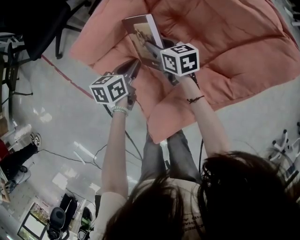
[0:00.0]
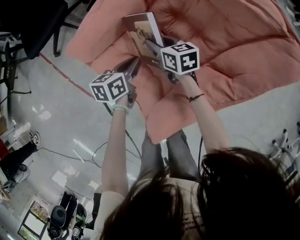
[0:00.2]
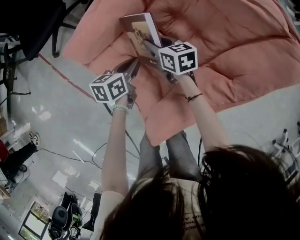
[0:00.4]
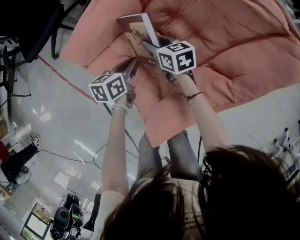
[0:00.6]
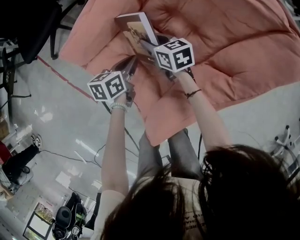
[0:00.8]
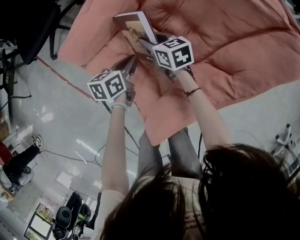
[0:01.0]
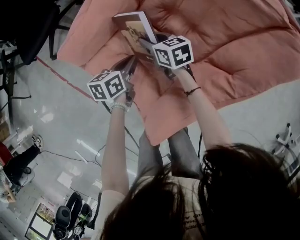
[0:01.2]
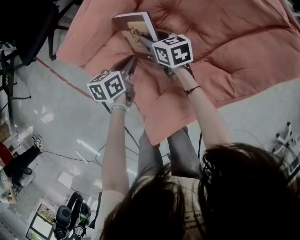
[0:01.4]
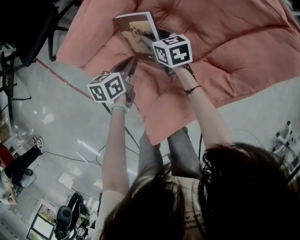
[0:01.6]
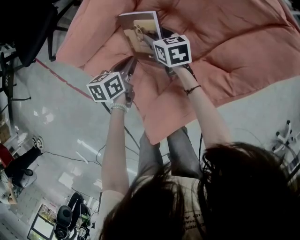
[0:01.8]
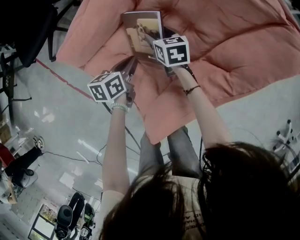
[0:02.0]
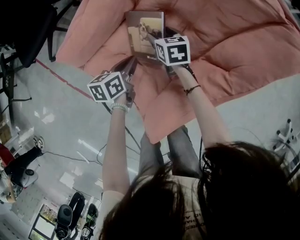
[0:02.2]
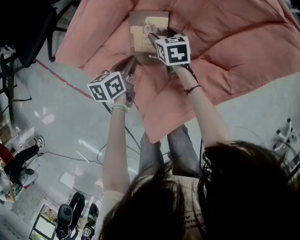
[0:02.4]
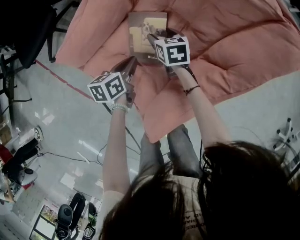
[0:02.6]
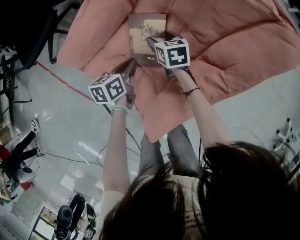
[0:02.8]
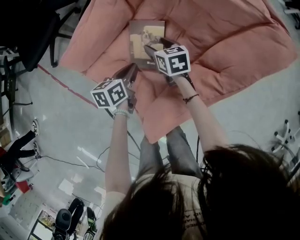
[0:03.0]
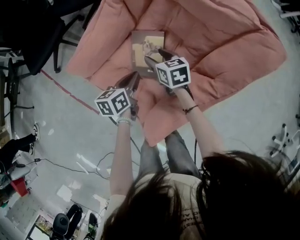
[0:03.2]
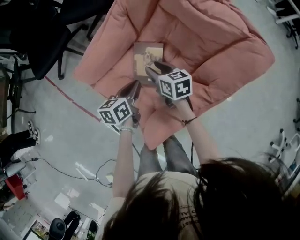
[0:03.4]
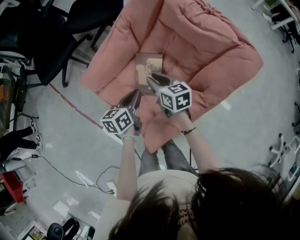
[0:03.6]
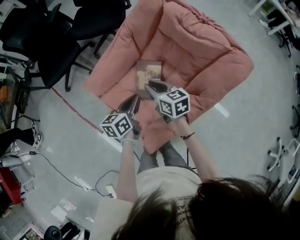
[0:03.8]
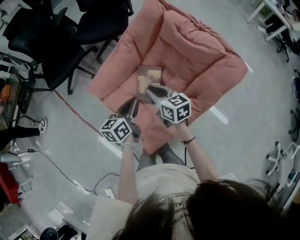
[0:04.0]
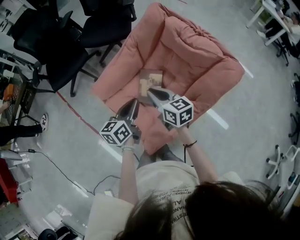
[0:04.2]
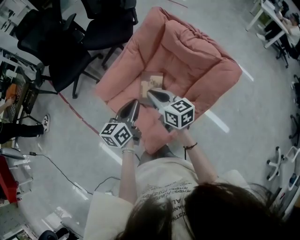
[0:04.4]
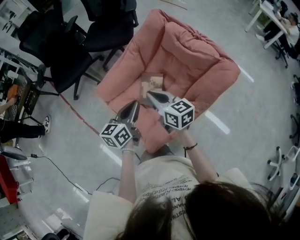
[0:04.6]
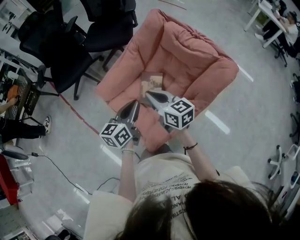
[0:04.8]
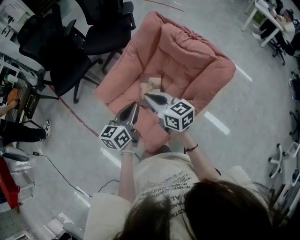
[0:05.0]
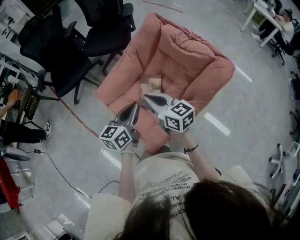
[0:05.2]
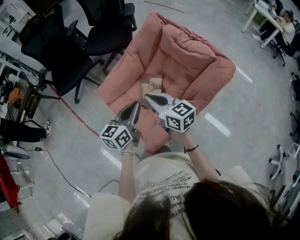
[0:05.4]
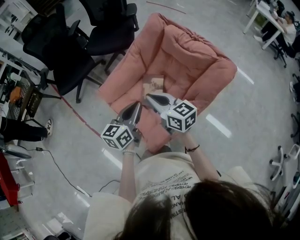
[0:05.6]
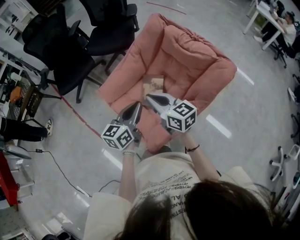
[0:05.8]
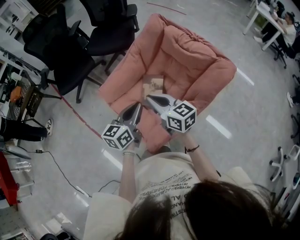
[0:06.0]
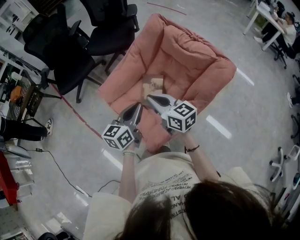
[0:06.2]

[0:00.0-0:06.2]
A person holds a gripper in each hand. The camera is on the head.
0:00.0 to 0:01.6: The right gripper ends up roughly 5 cm from where it was.
0:01.6 to 0:03.2: The grippers both shift upward by about 5 cm.
0:03.2 to 0:04.6: The right gripper is displaced upward and backward by roughly 35 cm, turns by roughly 30 degrees, and closes up, while the left gripper travels upward by some 30 cm, and changes its angle by approximately 30 degrees.
0:04.6 to 0:06.2: The right gripper changes place by approximately 5 cm.

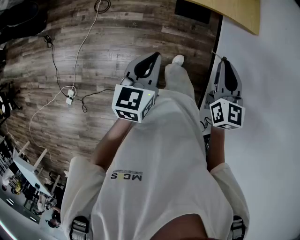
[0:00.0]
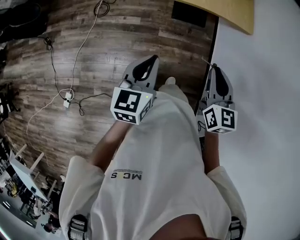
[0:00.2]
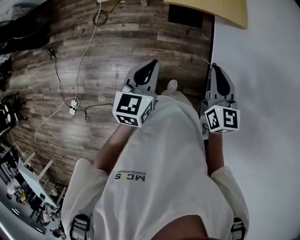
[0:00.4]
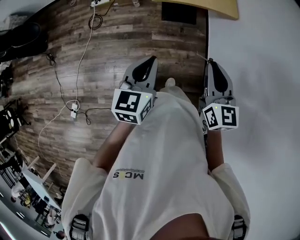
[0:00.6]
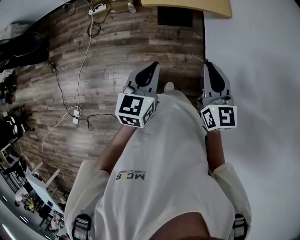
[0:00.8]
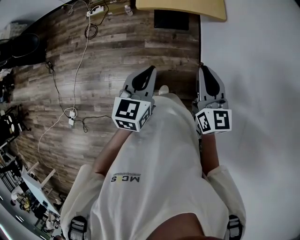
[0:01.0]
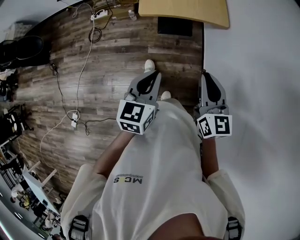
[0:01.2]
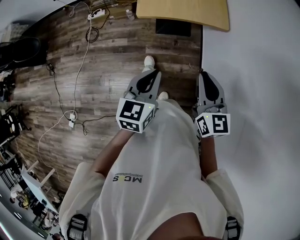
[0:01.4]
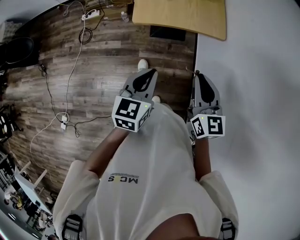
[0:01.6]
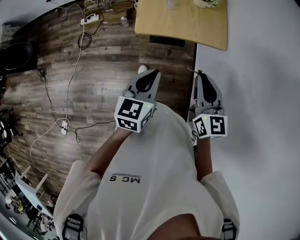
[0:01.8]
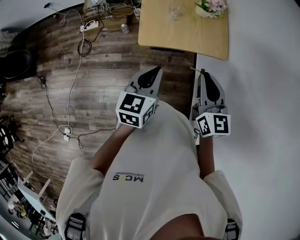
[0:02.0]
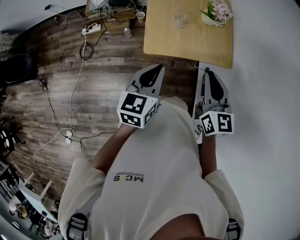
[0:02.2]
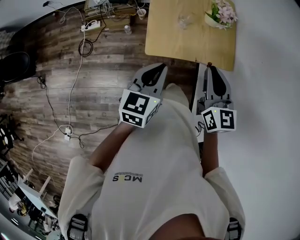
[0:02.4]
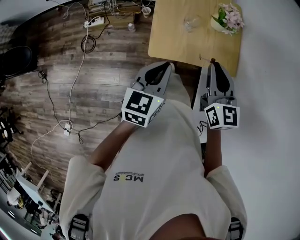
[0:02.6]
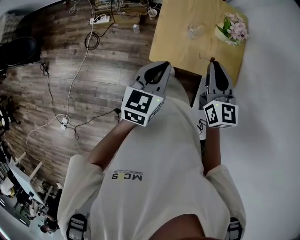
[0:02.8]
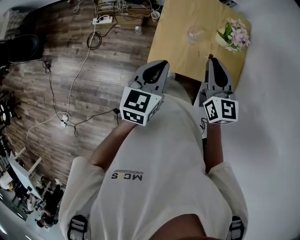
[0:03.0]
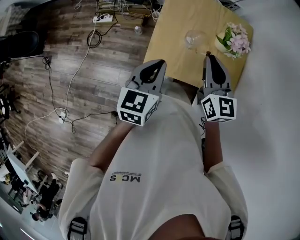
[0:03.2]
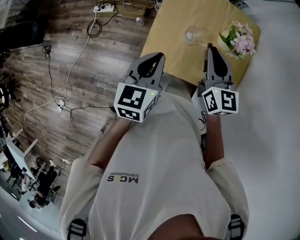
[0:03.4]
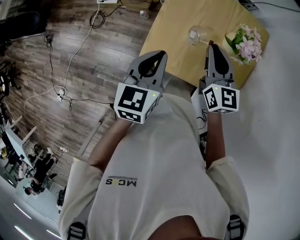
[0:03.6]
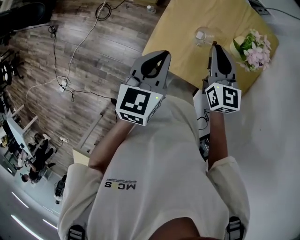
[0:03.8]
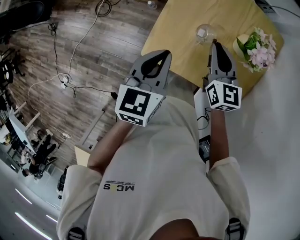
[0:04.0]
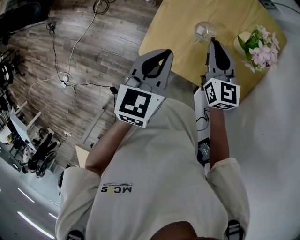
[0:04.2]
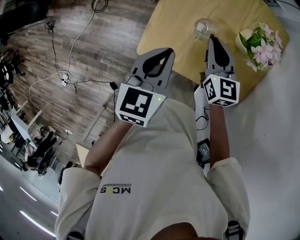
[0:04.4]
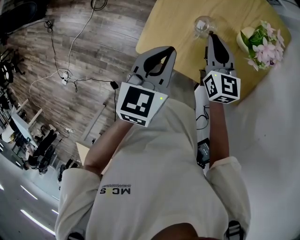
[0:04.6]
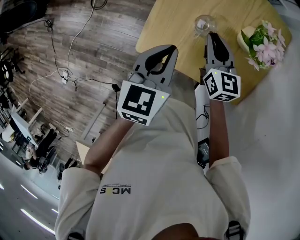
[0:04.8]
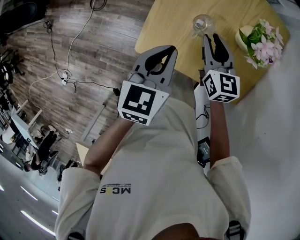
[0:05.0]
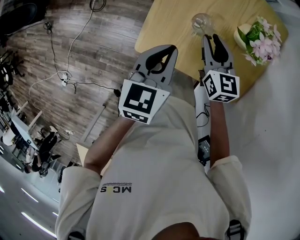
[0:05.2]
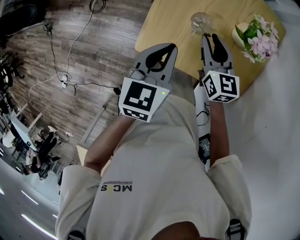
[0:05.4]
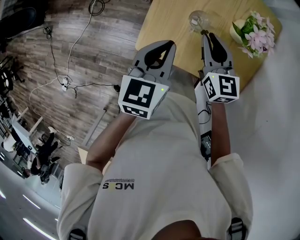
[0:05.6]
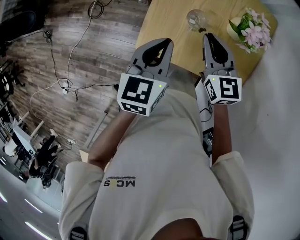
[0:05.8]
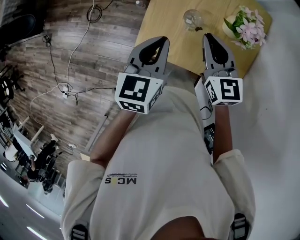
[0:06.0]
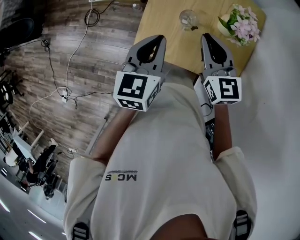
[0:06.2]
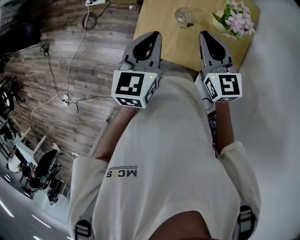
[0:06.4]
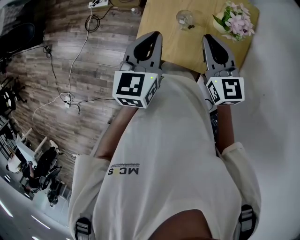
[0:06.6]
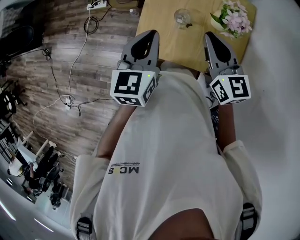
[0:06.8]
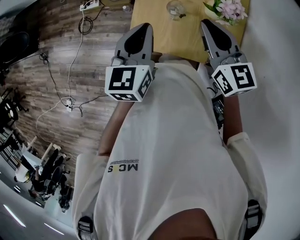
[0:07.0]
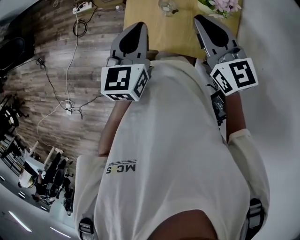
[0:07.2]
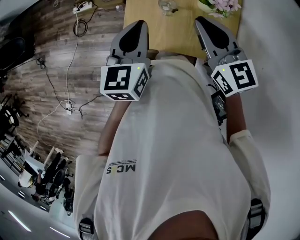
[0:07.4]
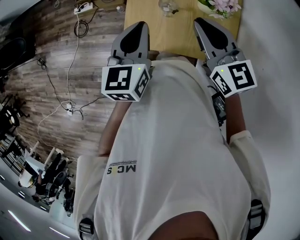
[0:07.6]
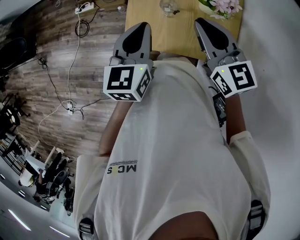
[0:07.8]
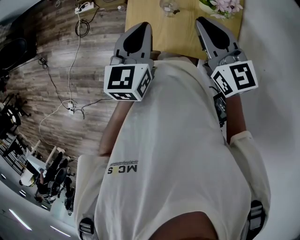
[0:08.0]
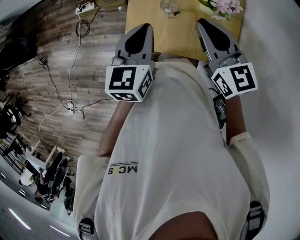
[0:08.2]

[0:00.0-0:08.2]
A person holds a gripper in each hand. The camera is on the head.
0:00.0 to 0:01.6: The left gripper is displaced to the right and forward by some 25 cm, while the right gripper heads to the right, covering some 15 cm.
0:01.6 to 0:03.2: Both grippers move forward, roughly 40 cm.
0:03.2 to 0:05.0: The right gripper moves downward, some 20 cm; the left gripper travels downward and to the right by roughly 10 cm.
0:05.0 to 0:06.6: The left gripper is displaced upward by roughly 10 cm, while the right gripper travels upward by about 15 cm.
0:06.6 to 0:08.2: There are only small adjustments of the grippers.

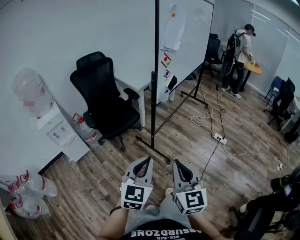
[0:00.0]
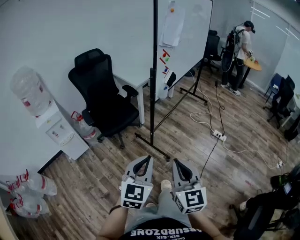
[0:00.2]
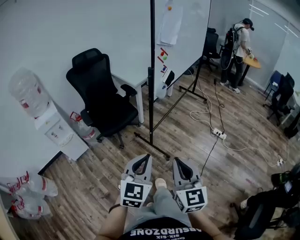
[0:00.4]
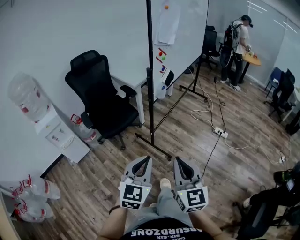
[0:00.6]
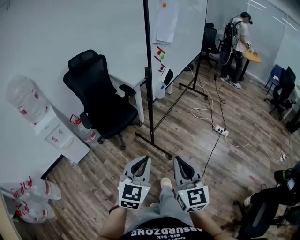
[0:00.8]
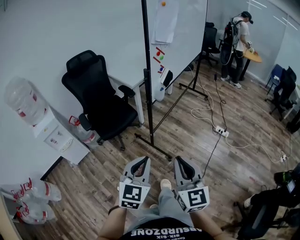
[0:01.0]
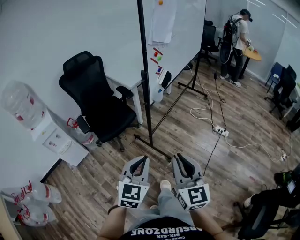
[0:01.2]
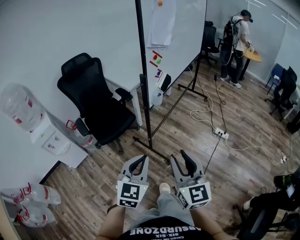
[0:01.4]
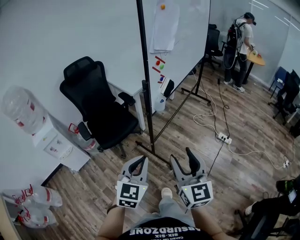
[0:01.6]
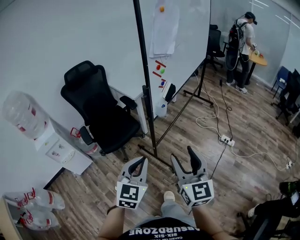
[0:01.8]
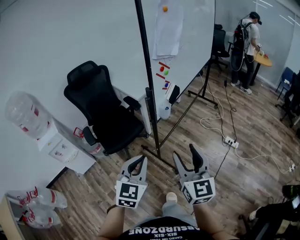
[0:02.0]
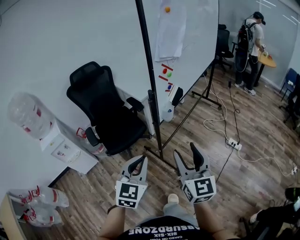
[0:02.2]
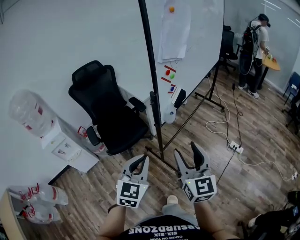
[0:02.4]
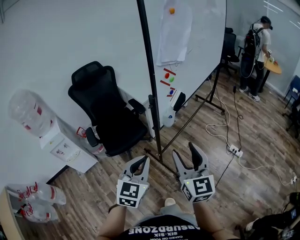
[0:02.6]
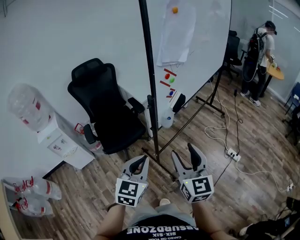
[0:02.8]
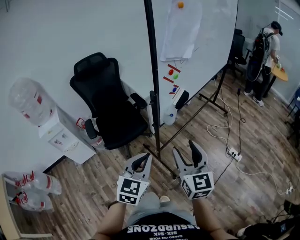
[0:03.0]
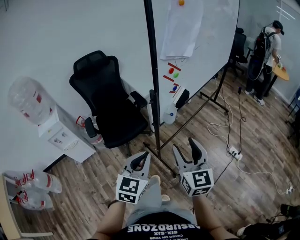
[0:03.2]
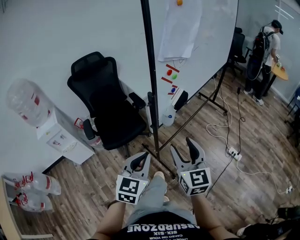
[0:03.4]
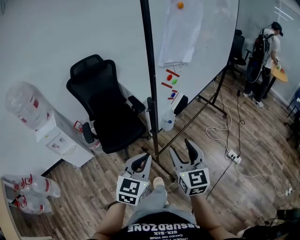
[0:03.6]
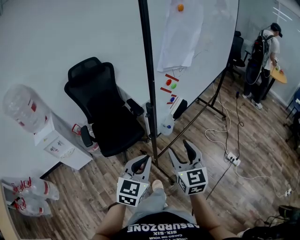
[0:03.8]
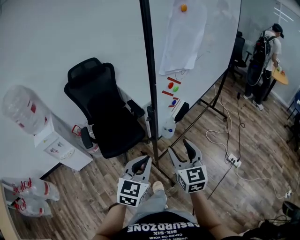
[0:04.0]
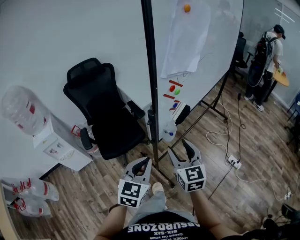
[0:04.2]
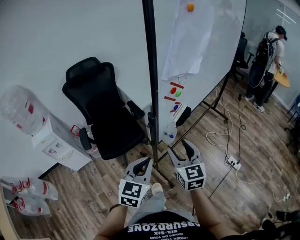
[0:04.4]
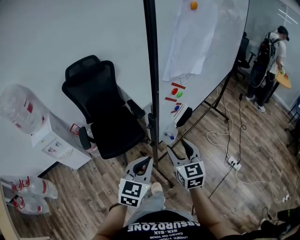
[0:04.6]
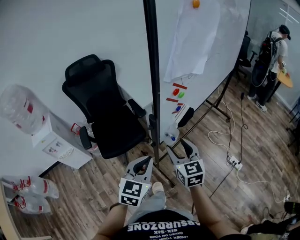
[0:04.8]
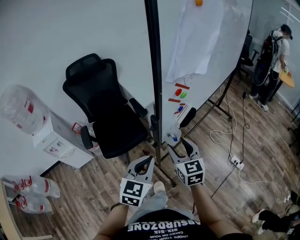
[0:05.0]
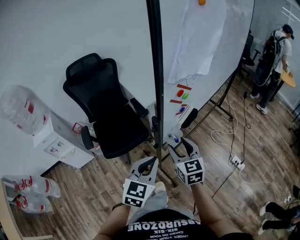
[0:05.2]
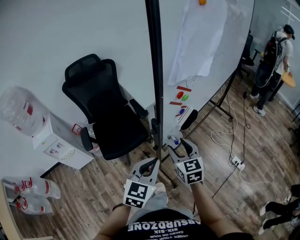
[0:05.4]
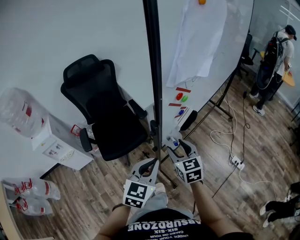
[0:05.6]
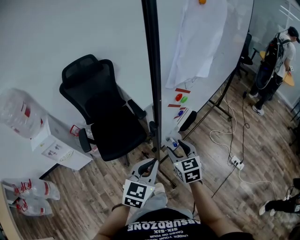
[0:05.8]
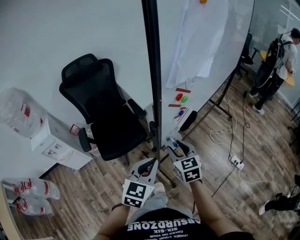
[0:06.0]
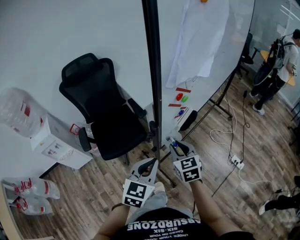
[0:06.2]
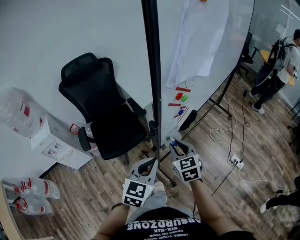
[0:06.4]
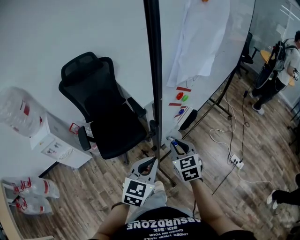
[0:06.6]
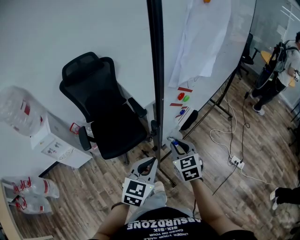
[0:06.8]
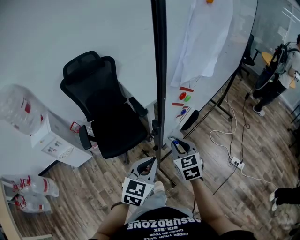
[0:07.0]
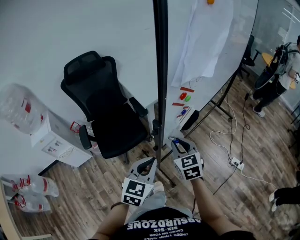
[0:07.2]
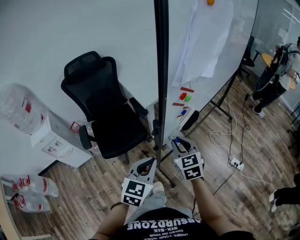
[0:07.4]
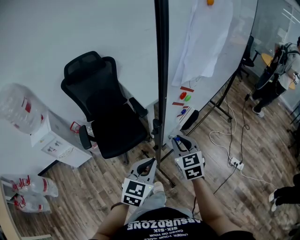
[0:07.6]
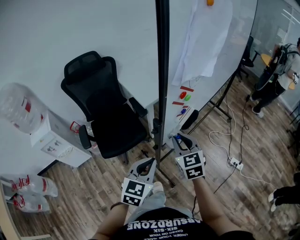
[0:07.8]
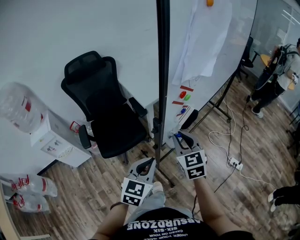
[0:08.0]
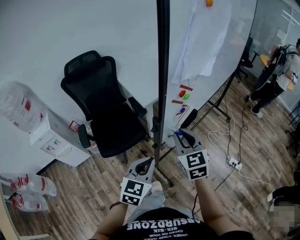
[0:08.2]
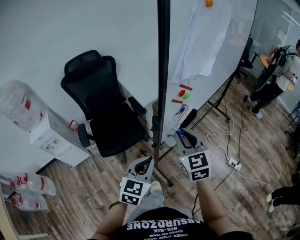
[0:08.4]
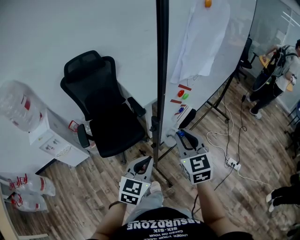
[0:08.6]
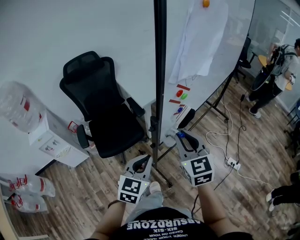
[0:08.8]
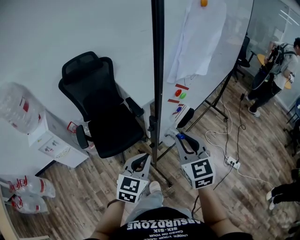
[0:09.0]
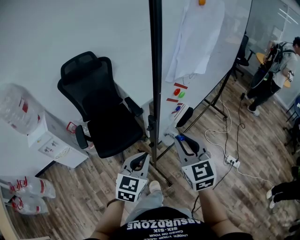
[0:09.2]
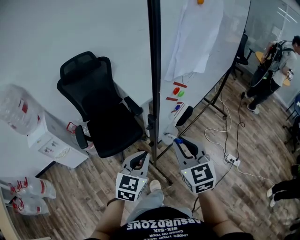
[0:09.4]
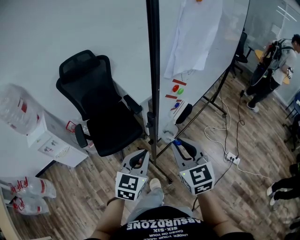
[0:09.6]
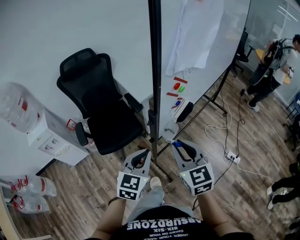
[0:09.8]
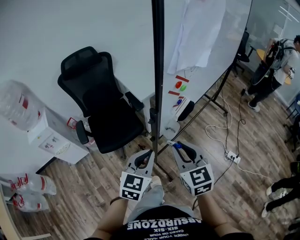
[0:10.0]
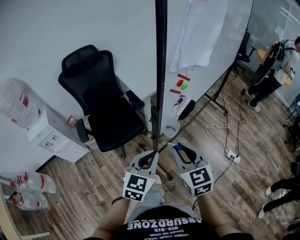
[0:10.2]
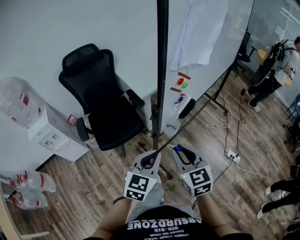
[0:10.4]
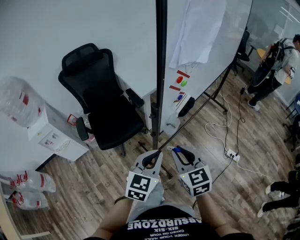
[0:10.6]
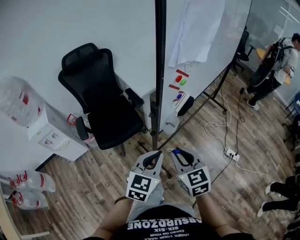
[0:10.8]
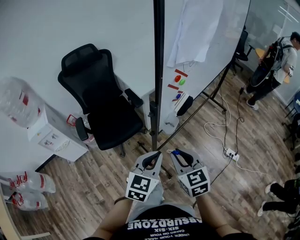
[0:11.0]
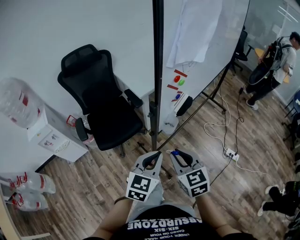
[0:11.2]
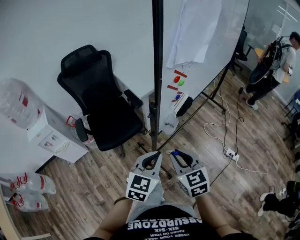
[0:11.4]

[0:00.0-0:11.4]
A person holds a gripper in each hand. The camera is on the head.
0:00.0 to 0:01.4: The grippers both shift forward by about 15 cm. The right gripper opens its fingers.
0:01.4 to 0:02.8: The grippers both shift forward by roughly 15 cm. The right gripper opens up.
0:02.8 to 0:04.2: The grippers both shift forward by about 15 cm.
0:04.2 to 0:05.6: The left gripper travels forward by approximately 5 cm; the right gripper travels forward and downward by some 15 cm.
0:05.6 to 0:07.2: The right gripper closes its fingers.
0:07.2 to 0:08.6: The right gripper moves upward, approximately 10 cm.
0:08.6 to 0:10.0: The right gripper moves backward, some 5 cm.
0:10.0 to 0:11.4: The right gripper changes place by approximately 5 cm.
